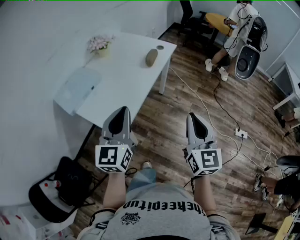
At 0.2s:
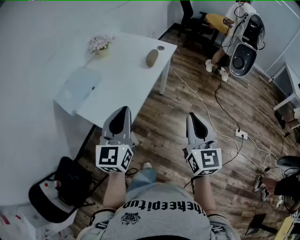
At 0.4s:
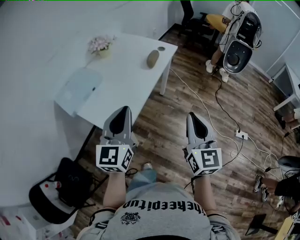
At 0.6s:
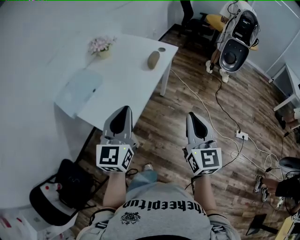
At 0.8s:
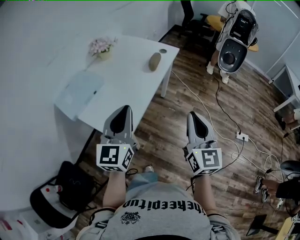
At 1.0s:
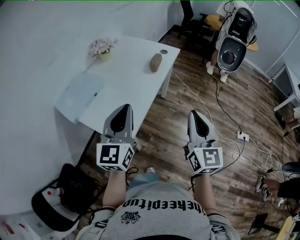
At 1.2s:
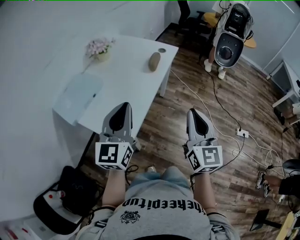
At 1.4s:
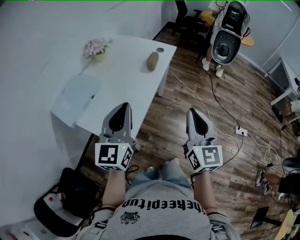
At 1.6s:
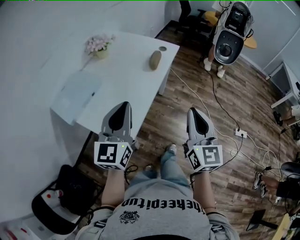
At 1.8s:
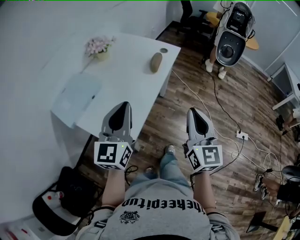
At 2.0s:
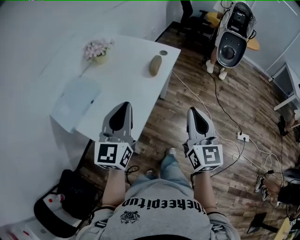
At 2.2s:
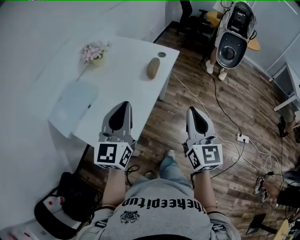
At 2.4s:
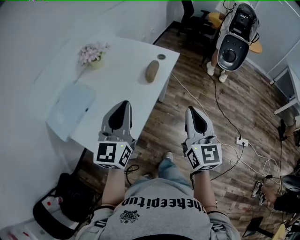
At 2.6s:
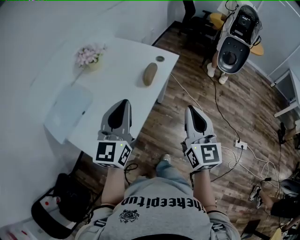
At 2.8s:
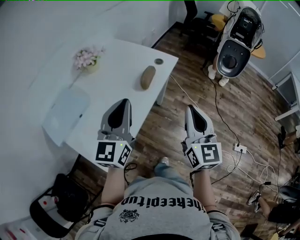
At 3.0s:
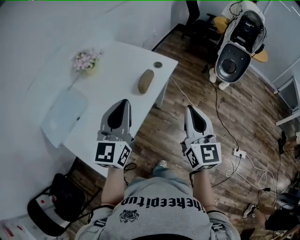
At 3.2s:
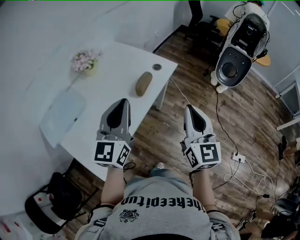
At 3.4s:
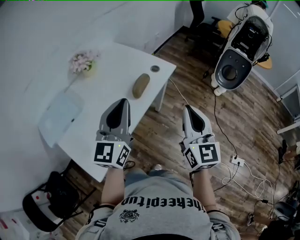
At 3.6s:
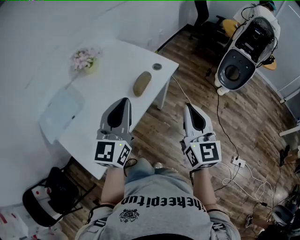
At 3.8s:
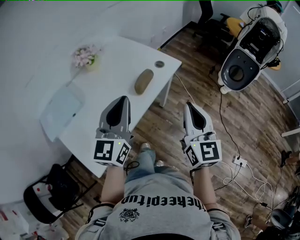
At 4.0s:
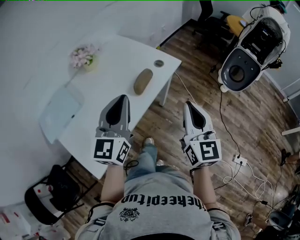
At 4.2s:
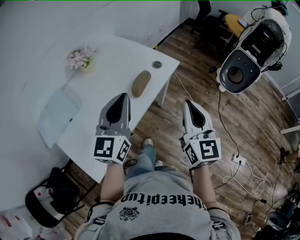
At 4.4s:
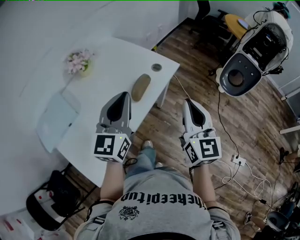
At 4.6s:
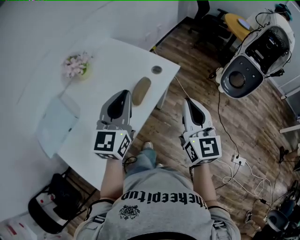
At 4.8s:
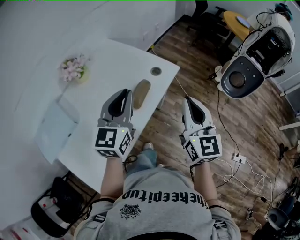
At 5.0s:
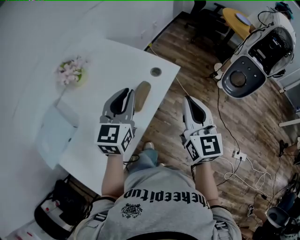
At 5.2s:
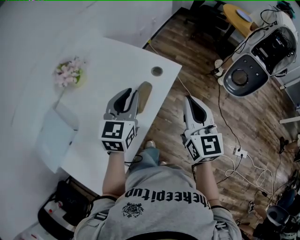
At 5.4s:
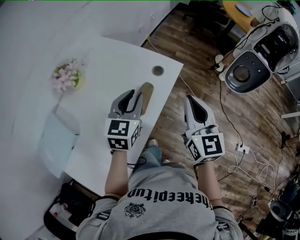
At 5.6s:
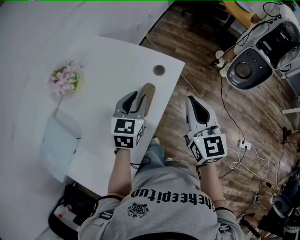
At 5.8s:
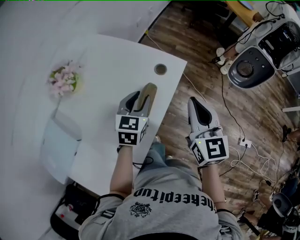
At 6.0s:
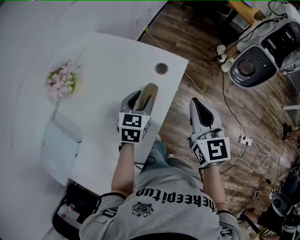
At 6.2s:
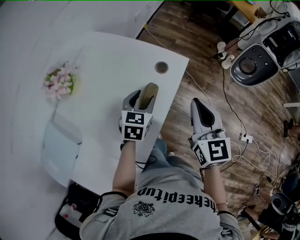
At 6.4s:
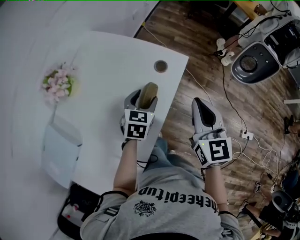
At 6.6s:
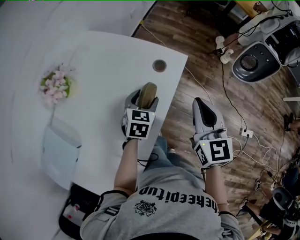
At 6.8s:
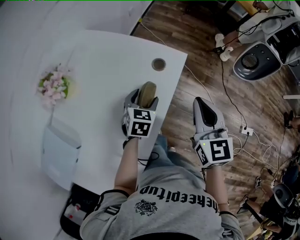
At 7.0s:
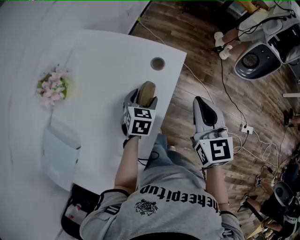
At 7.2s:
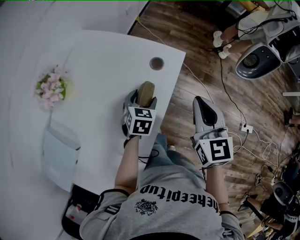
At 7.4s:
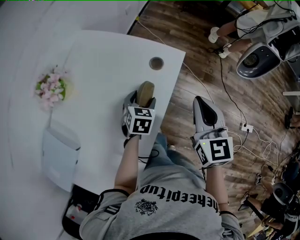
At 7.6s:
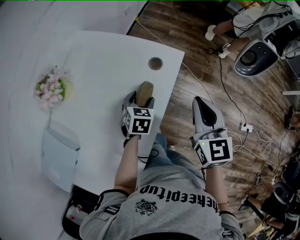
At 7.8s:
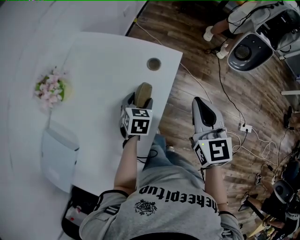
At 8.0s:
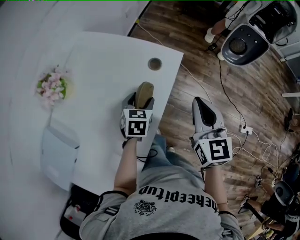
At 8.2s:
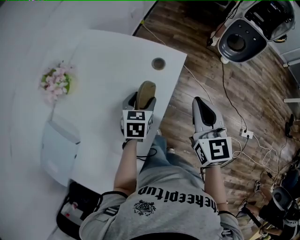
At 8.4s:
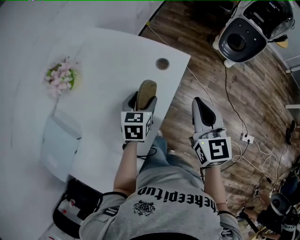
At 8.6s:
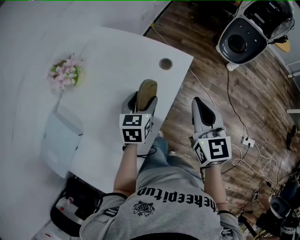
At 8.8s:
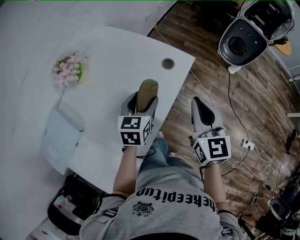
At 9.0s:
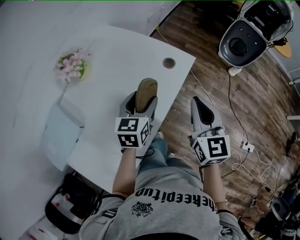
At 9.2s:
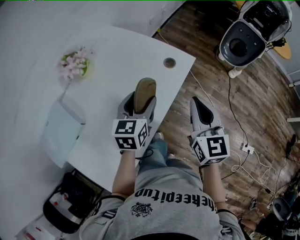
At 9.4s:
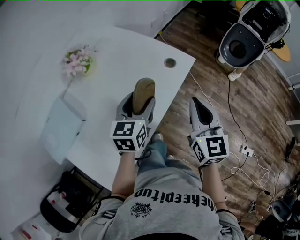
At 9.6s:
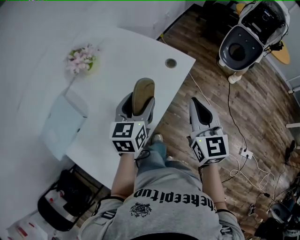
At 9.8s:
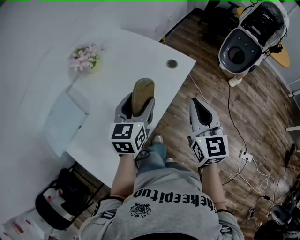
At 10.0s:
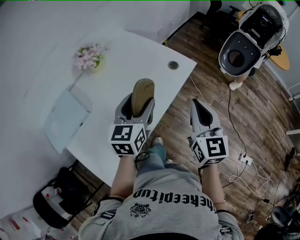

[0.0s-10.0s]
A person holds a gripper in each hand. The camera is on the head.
0.0s to 1.4s: Both grippers travel together forward, about 5 cm.
1.4s to 2.8s: Both grippers travel together forward, roughly 20 cm.
2.8s to 4.2s: Both grippers travel together forward and to the right, roughly 10 cm.
4.2s to 5.8s: The left gripper moves forward and downward, roughly 25 cm, tilts its fingers about 30 degrees downward, and opens up, while the right gripper shifts about 15 cm forward.
5.8s to 7.2s: The left gripper heads downward, covering some 10 cm, and opens up.
7.2s to 8.6s: The left gripper travels upward by roughly 10 cm, and changes its angle by approximately 20 degrees.
8.6s to 10.0s: The left gripper travels backward and upward by roughly 15 cm, and rotates some 20 degrees. The right gripper travels backward by roughly 10 cm.

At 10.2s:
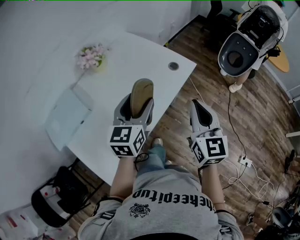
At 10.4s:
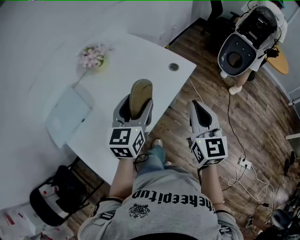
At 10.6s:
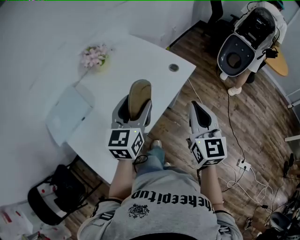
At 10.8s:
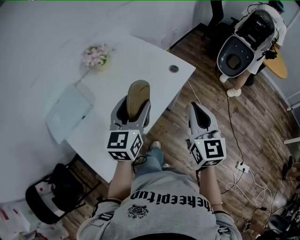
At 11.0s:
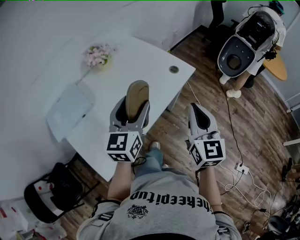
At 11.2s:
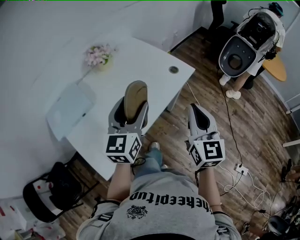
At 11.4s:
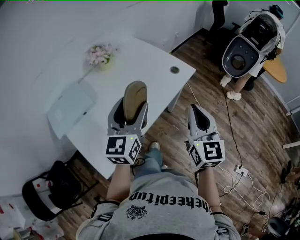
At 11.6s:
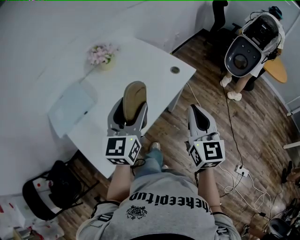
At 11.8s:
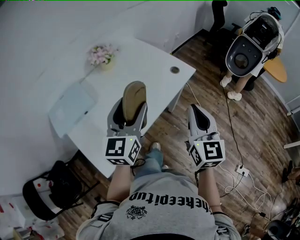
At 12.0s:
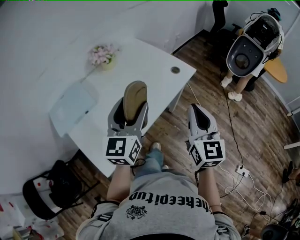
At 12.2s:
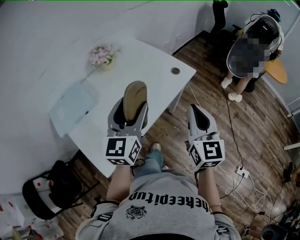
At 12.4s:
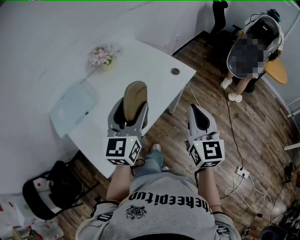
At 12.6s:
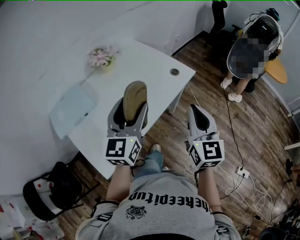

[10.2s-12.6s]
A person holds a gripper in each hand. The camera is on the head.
10.2s to 11.4s: Both grippers move backward, about 5 cm.
11.4s to 12.6s: The grippers stay close to where they were, moving slightly.

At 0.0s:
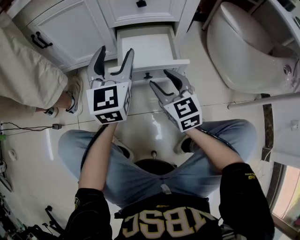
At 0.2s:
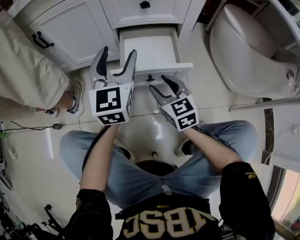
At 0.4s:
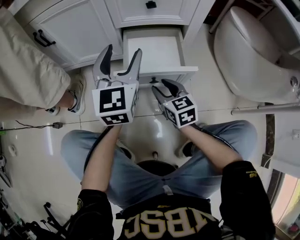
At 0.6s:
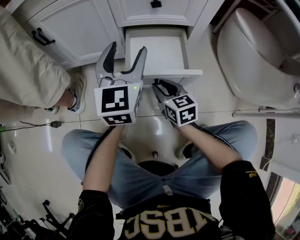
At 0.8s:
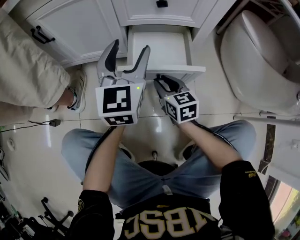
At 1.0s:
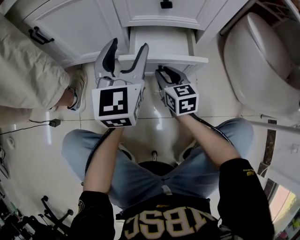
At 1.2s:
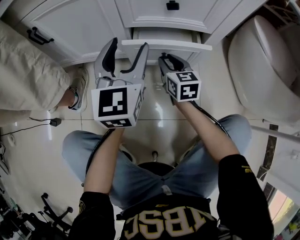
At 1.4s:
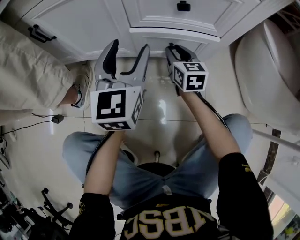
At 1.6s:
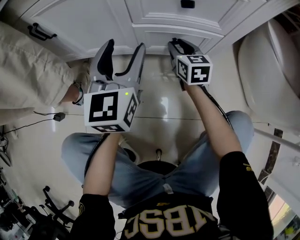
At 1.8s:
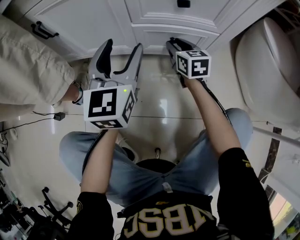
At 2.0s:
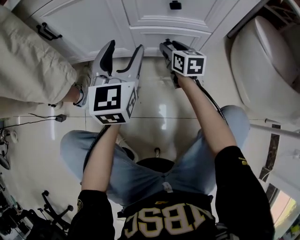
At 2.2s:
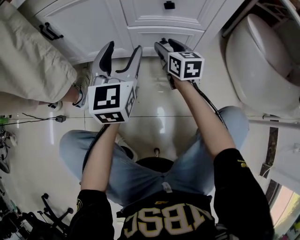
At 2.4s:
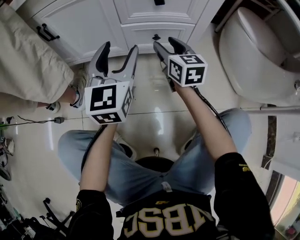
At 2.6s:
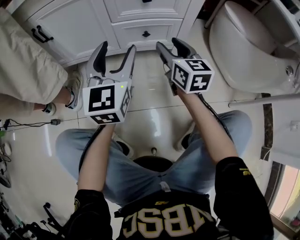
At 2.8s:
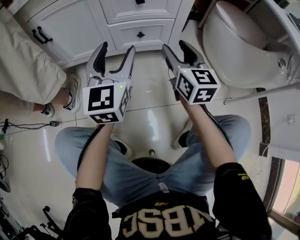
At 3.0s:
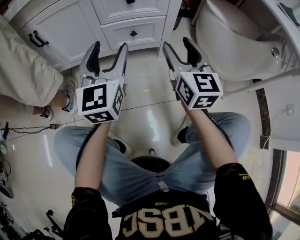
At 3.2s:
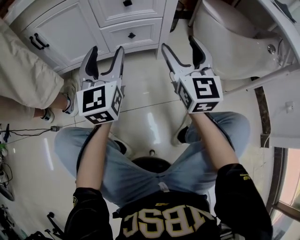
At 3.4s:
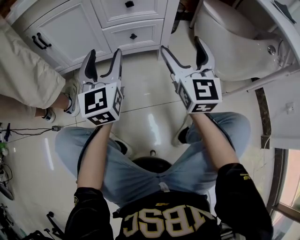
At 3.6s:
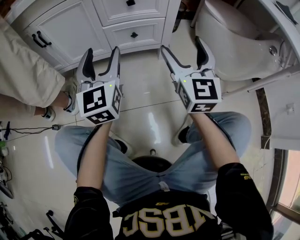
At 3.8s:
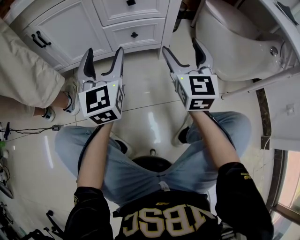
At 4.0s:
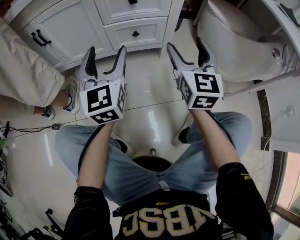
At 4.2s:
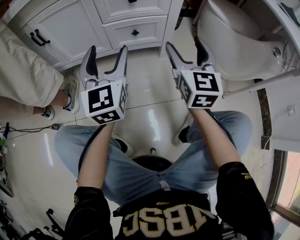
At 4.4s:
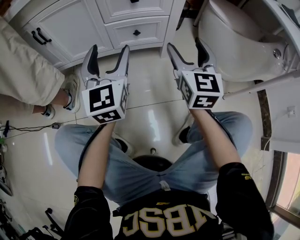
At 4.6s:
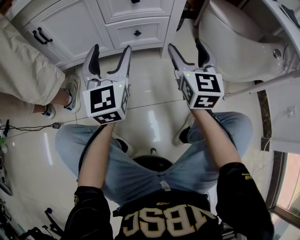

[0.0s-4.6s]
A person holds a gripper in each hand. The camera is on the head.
0.0s to 1.6s: The right gripper shifts about 25 cm forward. The left gripper moves forward, some 10 cm.
1.6s to 3.0s: The right gripper is displaced backward and upward by roughly 35 cm, and changes its angle by roughly 30 degrees. Meanwhile the left gripper goes roughly 15 cm backward and upward.
3.0s to 4.6s: The grippers stay close to where they were, moving slightly.

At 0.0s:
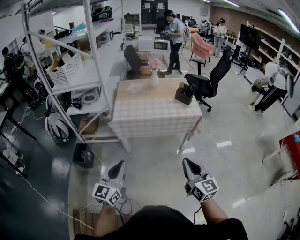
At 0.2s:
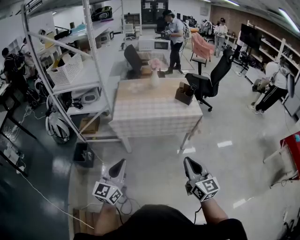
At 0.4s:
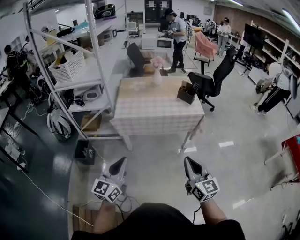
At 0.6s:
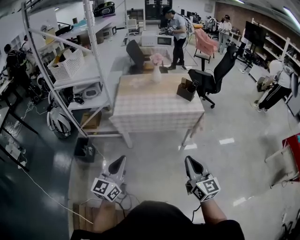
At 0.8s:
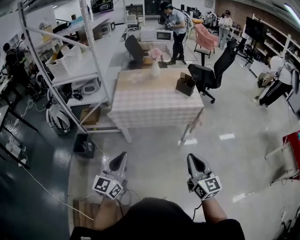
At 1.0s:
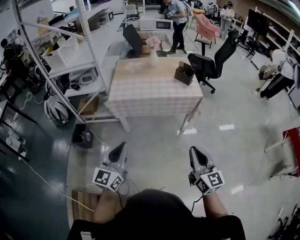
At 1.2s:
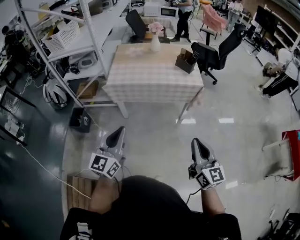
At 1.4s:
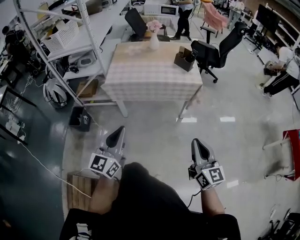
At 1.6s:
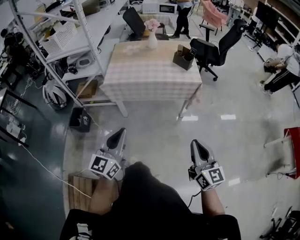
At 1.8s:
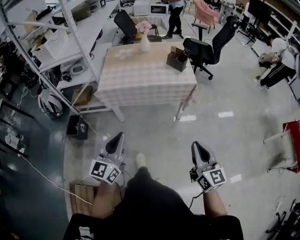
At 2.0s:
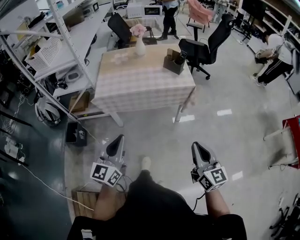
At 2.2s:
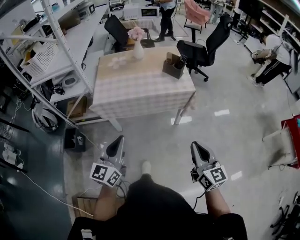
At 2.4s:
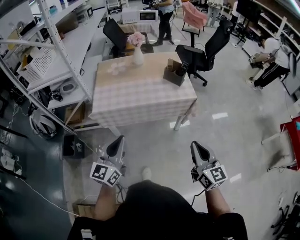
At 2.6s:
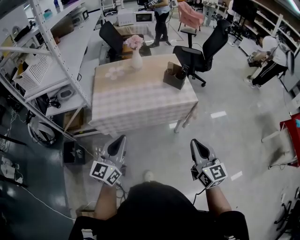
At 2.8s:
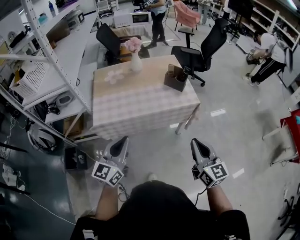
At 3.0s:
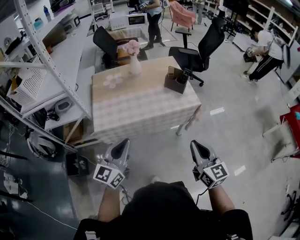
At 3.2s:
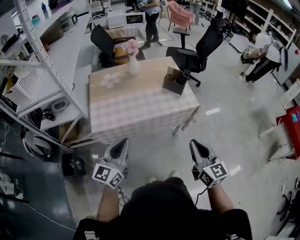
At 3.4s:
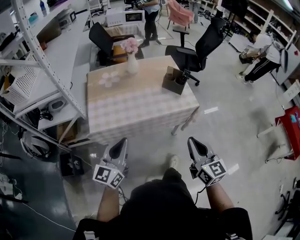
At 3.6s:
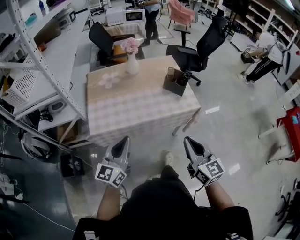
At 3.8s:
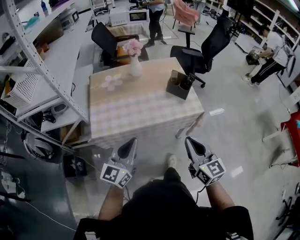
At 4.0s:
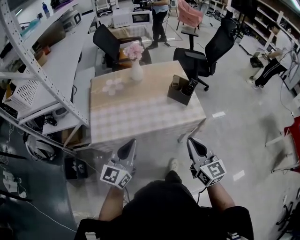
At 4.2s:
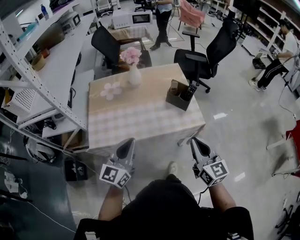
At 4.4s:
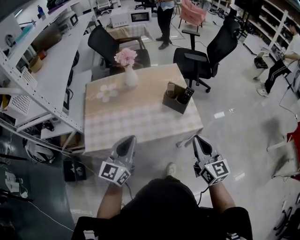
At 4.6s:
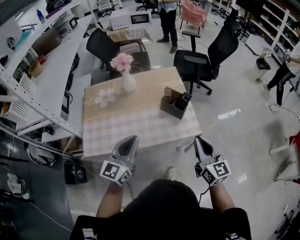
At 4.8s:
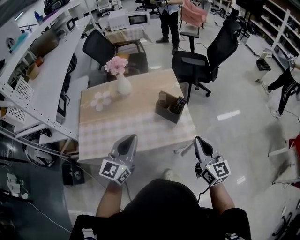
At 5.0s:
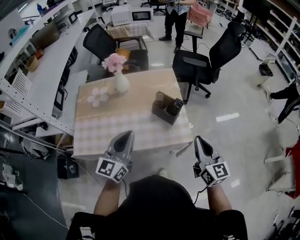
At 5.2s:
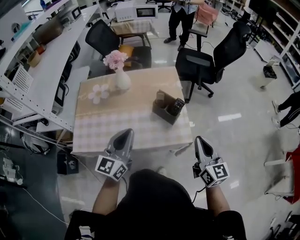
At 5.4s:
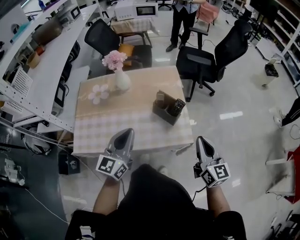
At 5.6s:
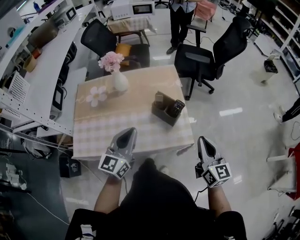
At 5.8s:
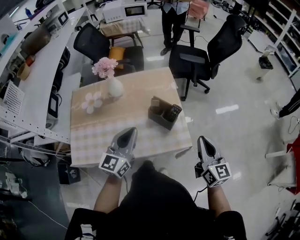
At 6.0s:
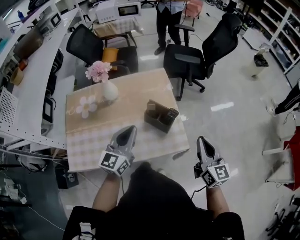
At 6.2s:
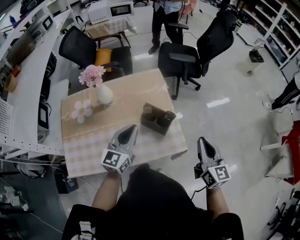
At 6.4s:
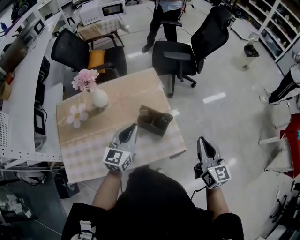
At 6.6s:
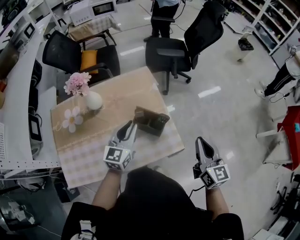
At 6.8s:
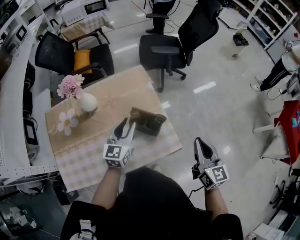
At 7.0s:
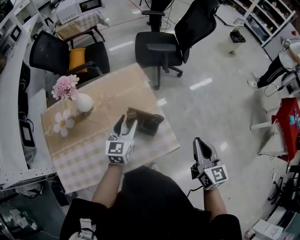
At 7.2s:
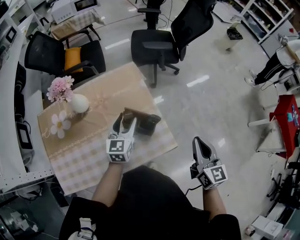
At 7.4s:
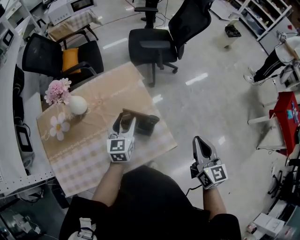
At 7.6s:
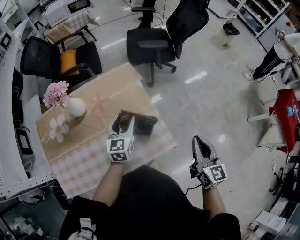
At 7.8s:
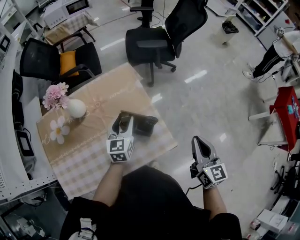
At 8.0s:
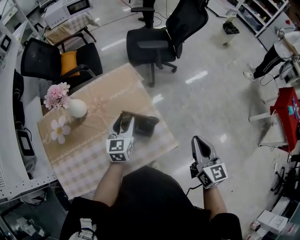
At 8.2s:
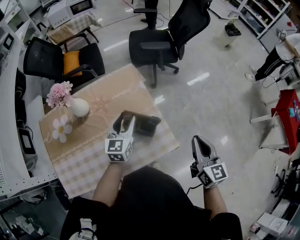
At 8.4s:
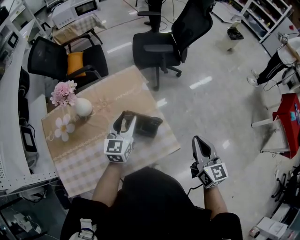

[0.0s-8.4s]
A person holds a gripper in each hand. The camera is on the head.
0.0s to 1.4s: Both grippers travel together to the right, roughly 15 cm.
1.4s to 2.8s: The grippers both shift forward by about 25 cm.
2.8s to 4.2s: The two grippers go some 20 cm forward.
4.2s to 5.6s: The two grippers go about 25 cm forward and to the right.
5.6s to 7.0s: The left gripper heads forward and downward, covering roughly 25 cm, and opens up. Meanwhile the right gripper moves forward, some 5 cm.
7.0s to 8.4s: The grippers stay close to where they were, moving slightly.
